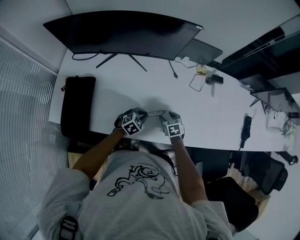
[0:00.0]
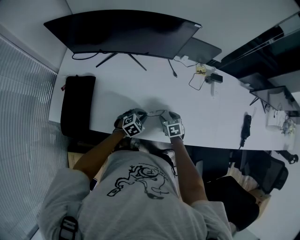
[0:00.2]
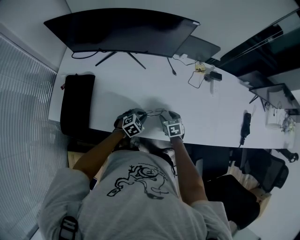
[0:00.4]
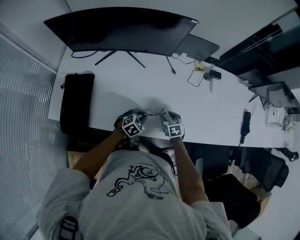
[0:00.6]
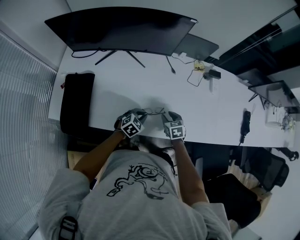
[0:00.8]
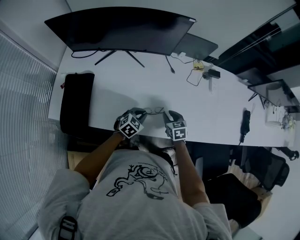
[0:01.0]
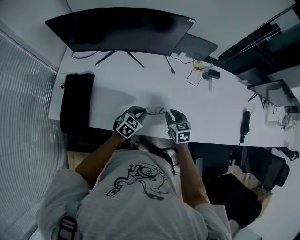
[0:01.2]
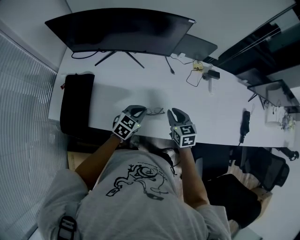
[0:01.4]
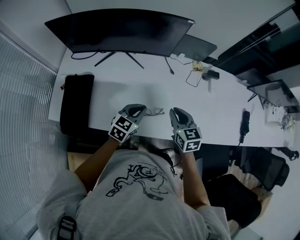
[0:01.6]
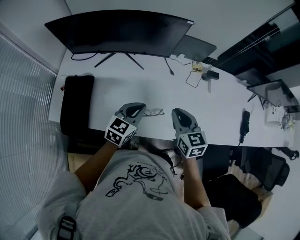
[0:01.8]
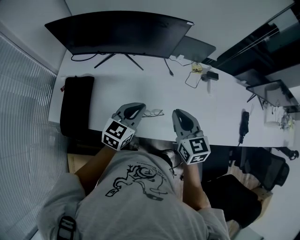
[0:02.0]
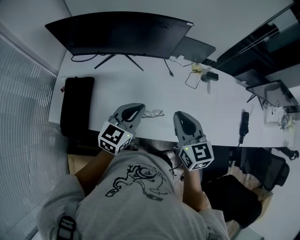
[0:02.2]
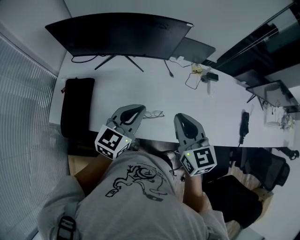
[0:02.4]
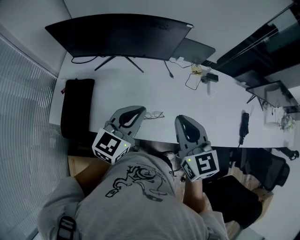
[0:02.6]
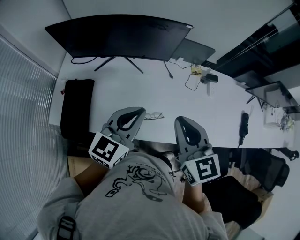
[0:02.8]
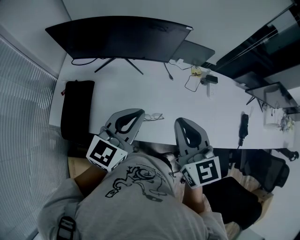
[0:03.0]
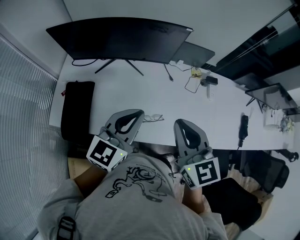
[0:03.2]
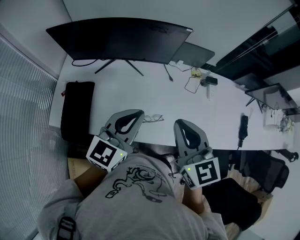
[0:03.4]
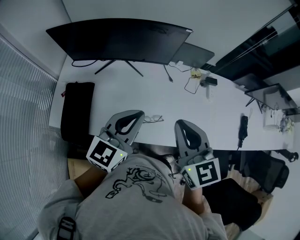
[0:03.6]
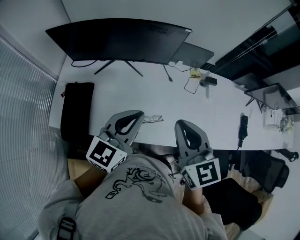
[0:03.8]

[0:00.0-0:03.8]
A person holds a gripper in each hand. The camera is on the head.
0:00.0 to 0:01.2: The right gripper heads upward, covering approximately 10 cm, and closes up. The left gripper travels upward by some 5 cm.
0:01.2 to 0:02.6: Both grippers travel together upward, roughly 30 cm. The right gripper rotates some 20 degrees; the left gripper rotates roughly 30 degrees.
0:02.6 to 0:03.8: There are only small adjustments of the grippers.

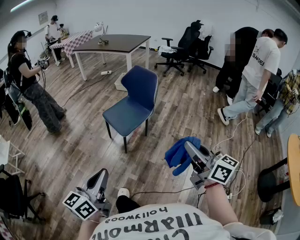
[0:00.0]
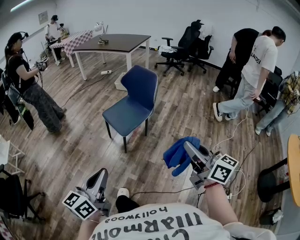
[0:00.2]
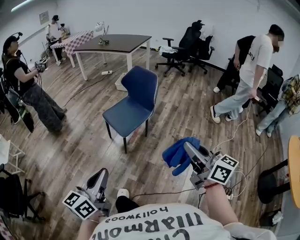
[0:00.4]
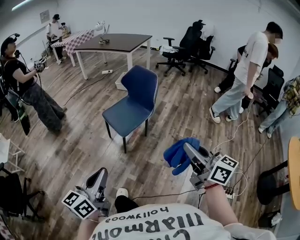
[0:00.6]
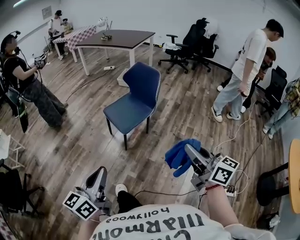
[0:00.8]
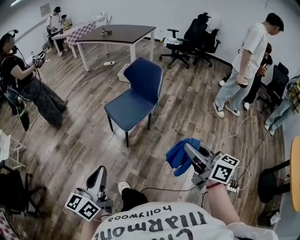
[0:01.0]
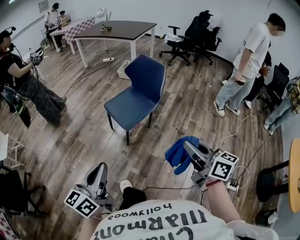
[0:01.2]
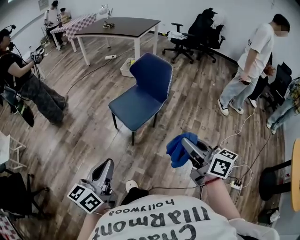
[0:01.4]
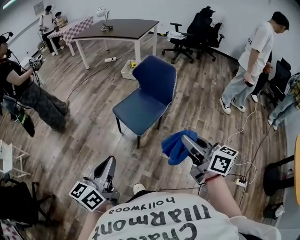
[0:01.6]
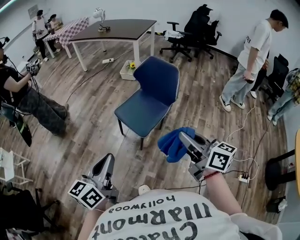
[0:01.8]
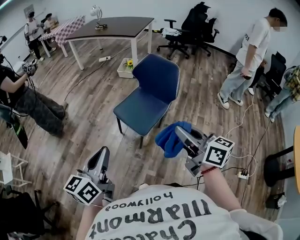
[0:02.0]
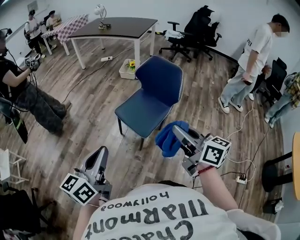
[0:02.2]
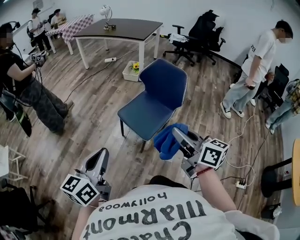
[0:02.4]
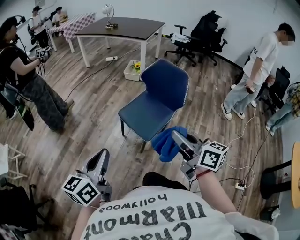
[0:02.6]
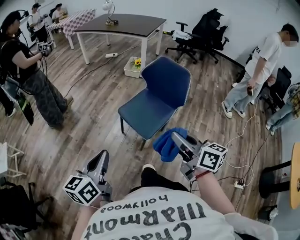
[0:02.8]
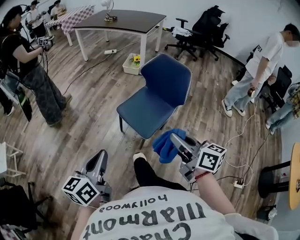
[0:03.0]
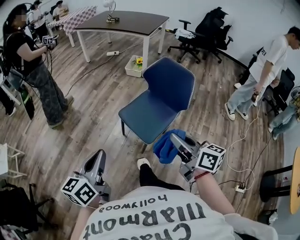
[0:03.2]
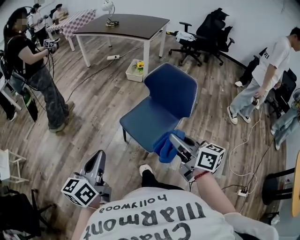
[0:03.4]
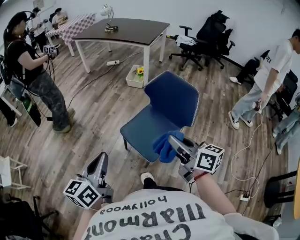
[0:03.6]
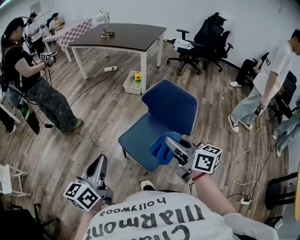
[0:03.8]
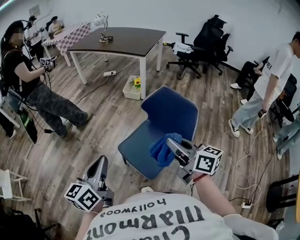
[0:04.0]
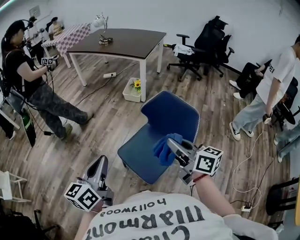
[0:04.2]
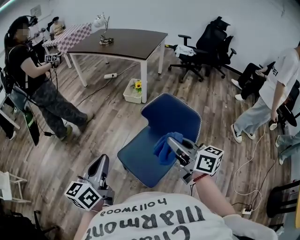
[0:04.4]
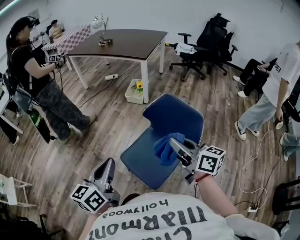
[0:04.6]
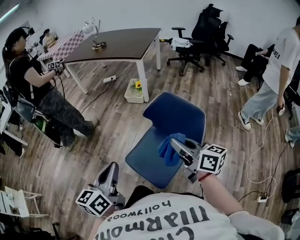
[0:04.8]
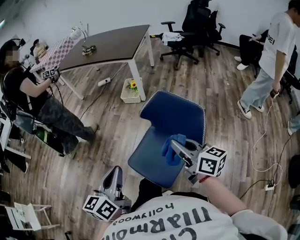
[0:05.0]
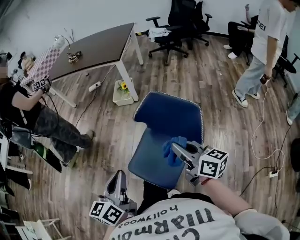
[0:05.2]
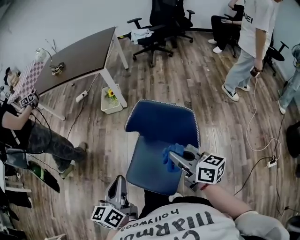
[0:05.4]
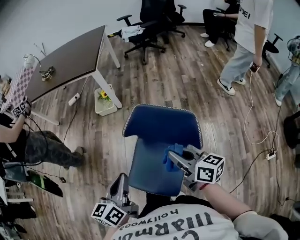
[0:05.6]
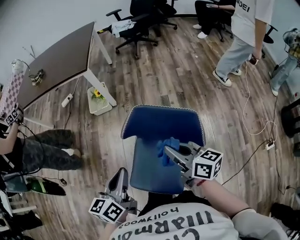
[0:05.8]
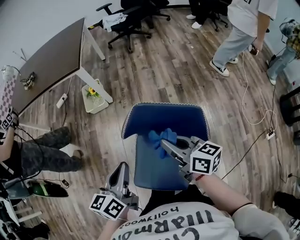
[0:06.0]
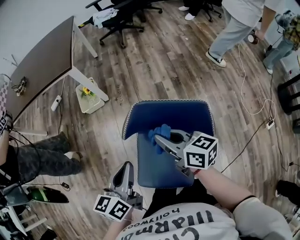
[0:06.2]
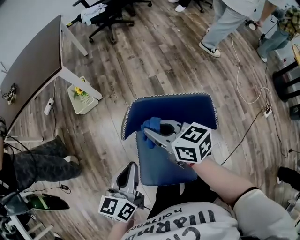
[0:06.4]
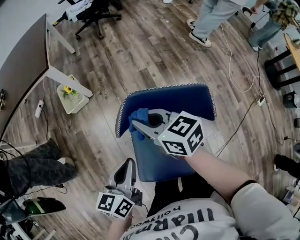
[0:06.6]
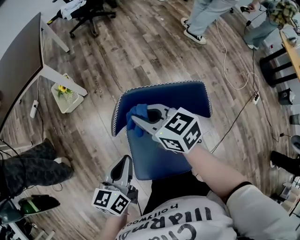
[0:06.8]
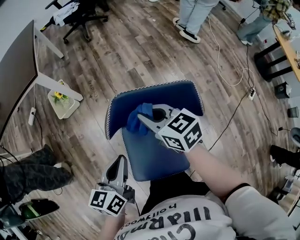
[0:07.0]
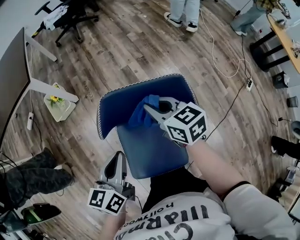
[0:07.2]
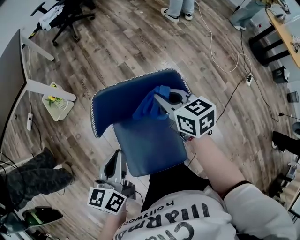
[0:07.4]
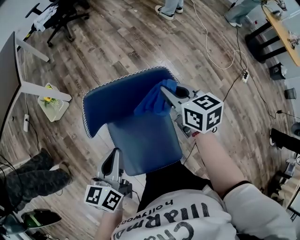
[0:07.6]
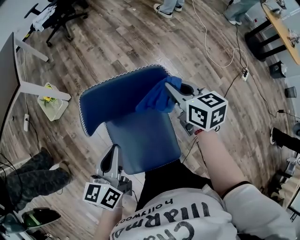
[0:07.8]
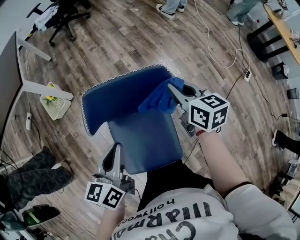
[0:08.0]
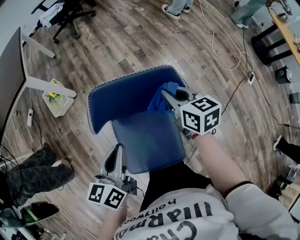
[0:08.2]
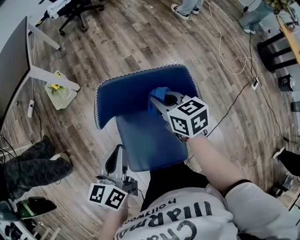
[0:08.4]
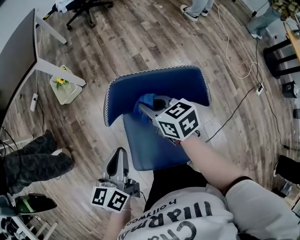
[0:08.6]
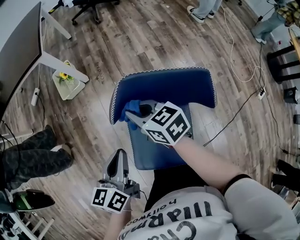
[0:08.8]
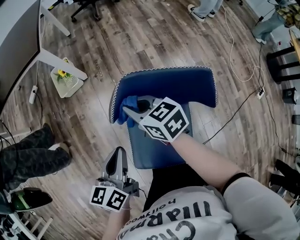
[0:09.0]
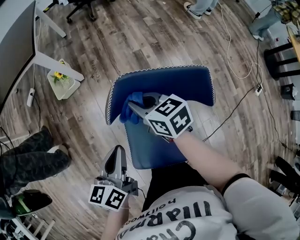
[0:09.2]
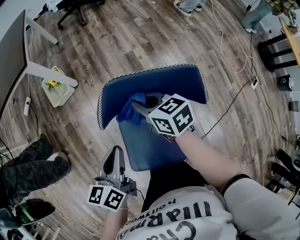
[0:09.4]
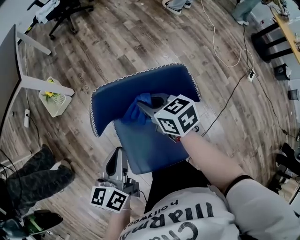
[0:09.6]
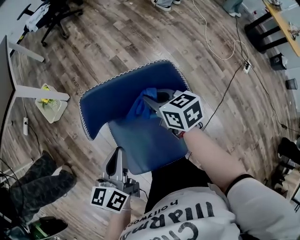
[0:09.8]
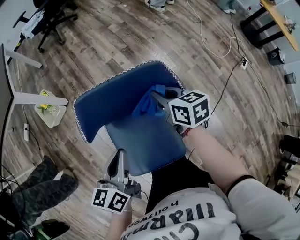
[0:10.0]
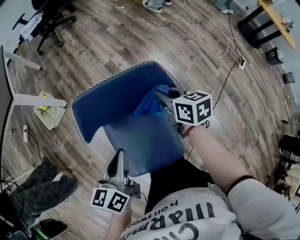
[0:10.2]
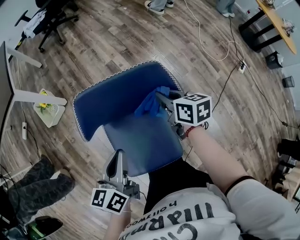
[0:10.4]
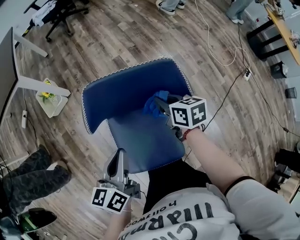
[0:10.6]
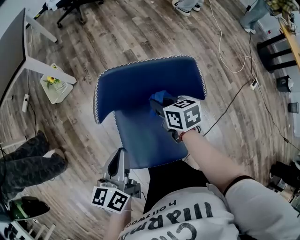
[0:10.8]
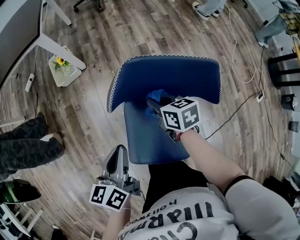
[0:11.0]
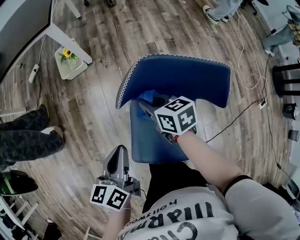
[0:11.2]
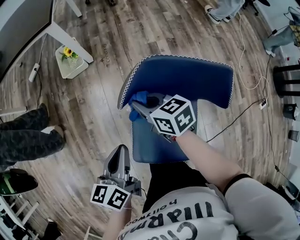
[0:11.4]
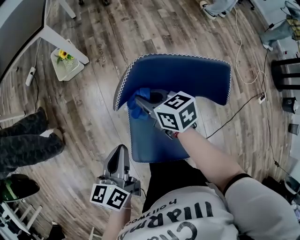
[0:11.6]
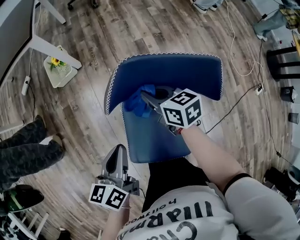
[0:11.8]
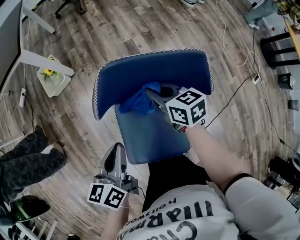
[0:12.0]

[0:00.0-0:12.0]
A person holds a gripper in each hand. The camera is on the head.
0:00.0 to 0:01.6: Both grippers travel together forward and to the left, some 20 cm.
0:01.6 to 0:03.0: The two grippers go about 15 cm forward and to the left.
0:03.0 to 0:04.4: The grippers both shift forward by some 30 cm.
0:04.4 to 0:06.0: The left gripper moves some 30 cm, and turns by approximately 40 degrees. The right gripper shifts by approximately 25 cm, and swivels about 30 degrees.
0:06.0 to 0:07.6: The left gripper heads downward, covering some 10 cm, and rotates approximately 20 degrees. Meanwhile the right gripper ends up about 15 cm from where it was, and turns by some 40 degrees.
0:07.6 to 0:09.0: The left gripper ends up roughly 10 cm from where it was; the right gripper moves some 25 cm, and turns by roughly 30 degrees.
0:09.0 to 0:10.4: The right gripper changes place by approximately 30 cm, and rotates roughly 40 degrees, while the left gripper changes place by approximately 10 cm.
0:10.4 to 0:12.0: The right gripper rotates some 20 degrees.

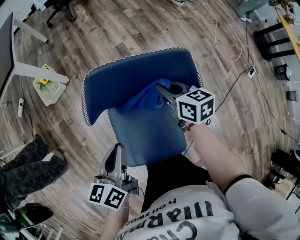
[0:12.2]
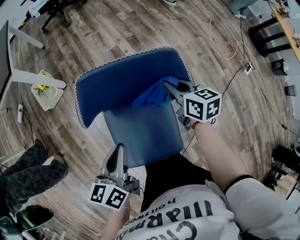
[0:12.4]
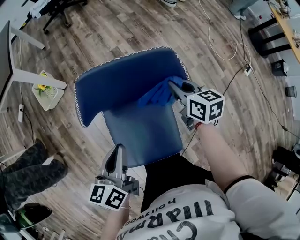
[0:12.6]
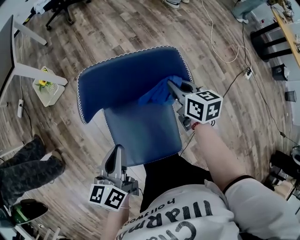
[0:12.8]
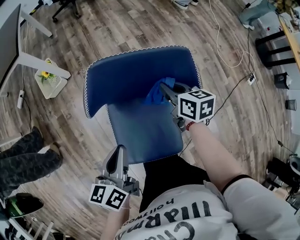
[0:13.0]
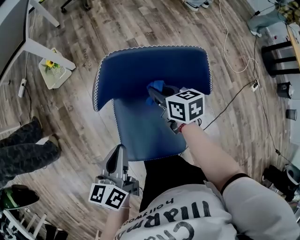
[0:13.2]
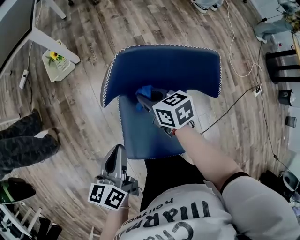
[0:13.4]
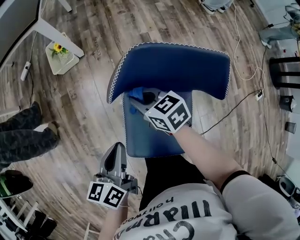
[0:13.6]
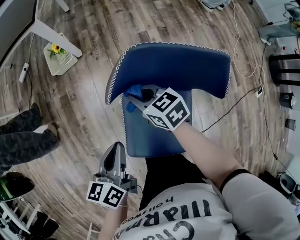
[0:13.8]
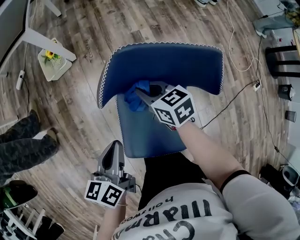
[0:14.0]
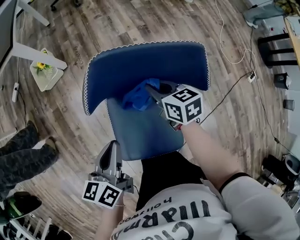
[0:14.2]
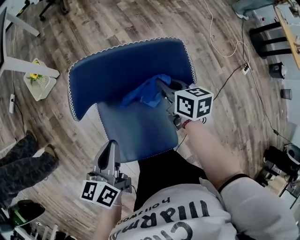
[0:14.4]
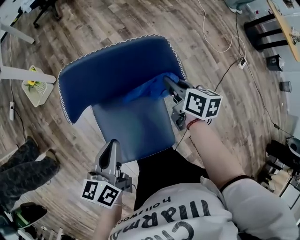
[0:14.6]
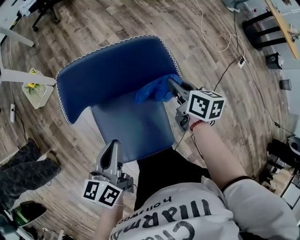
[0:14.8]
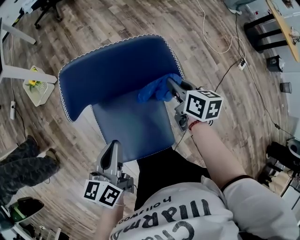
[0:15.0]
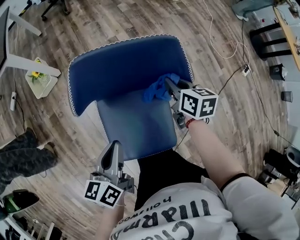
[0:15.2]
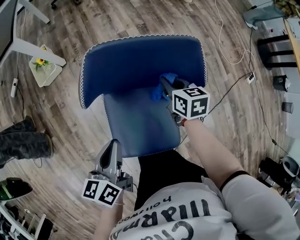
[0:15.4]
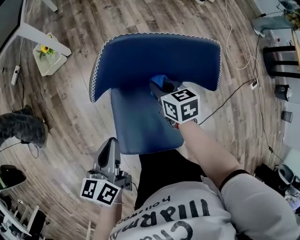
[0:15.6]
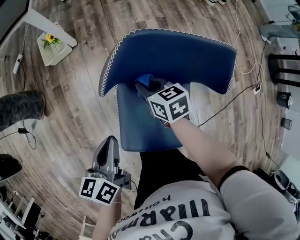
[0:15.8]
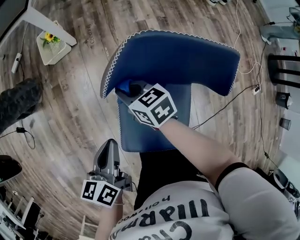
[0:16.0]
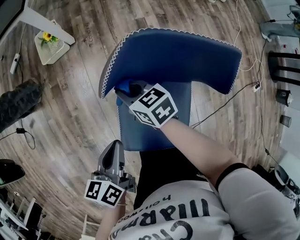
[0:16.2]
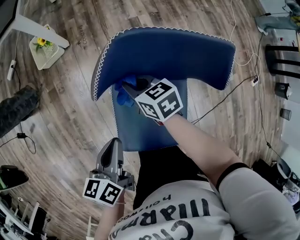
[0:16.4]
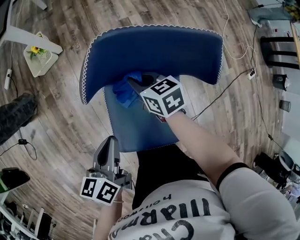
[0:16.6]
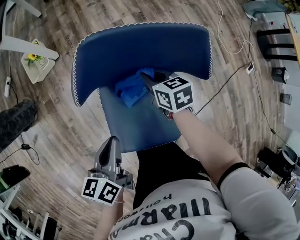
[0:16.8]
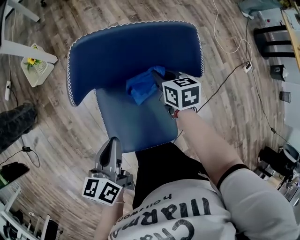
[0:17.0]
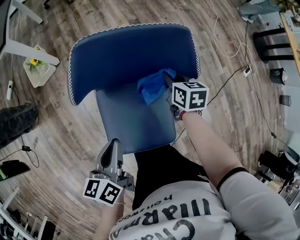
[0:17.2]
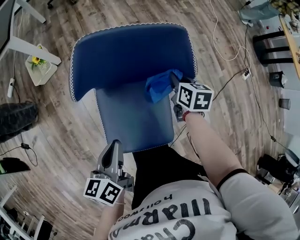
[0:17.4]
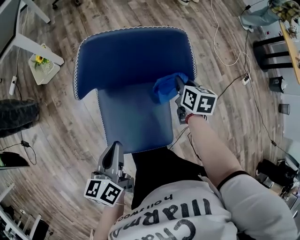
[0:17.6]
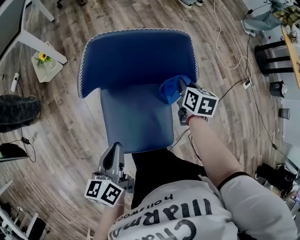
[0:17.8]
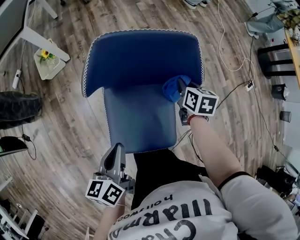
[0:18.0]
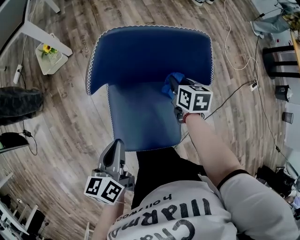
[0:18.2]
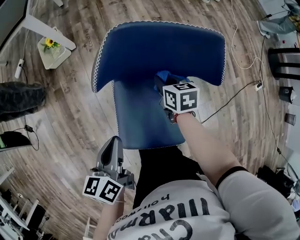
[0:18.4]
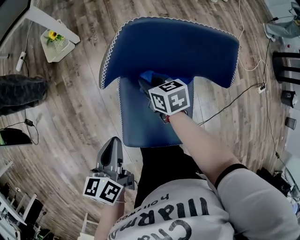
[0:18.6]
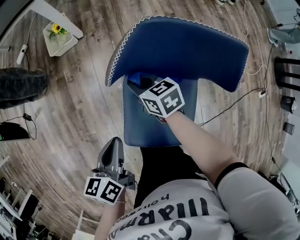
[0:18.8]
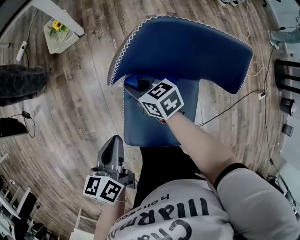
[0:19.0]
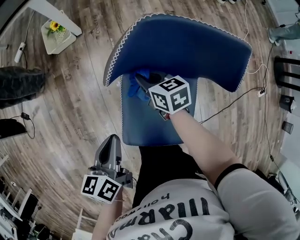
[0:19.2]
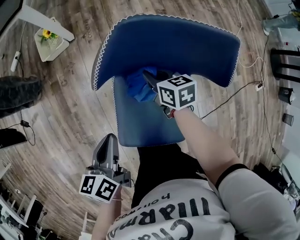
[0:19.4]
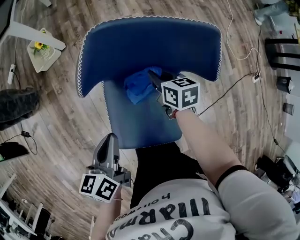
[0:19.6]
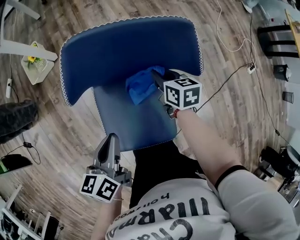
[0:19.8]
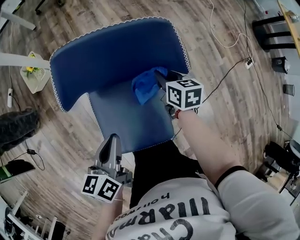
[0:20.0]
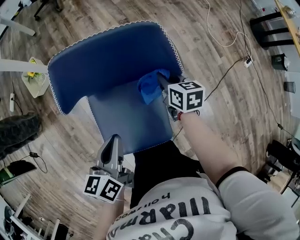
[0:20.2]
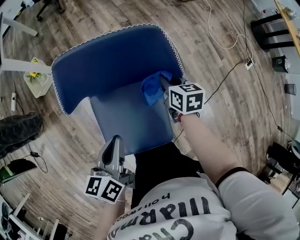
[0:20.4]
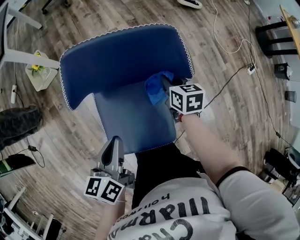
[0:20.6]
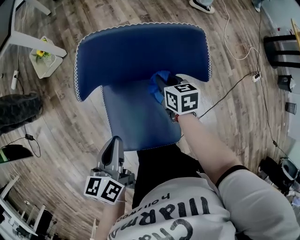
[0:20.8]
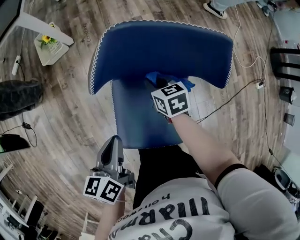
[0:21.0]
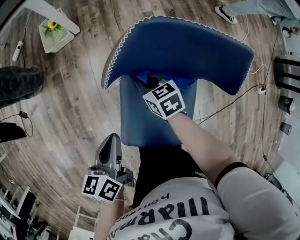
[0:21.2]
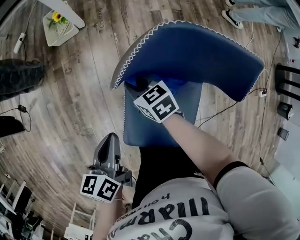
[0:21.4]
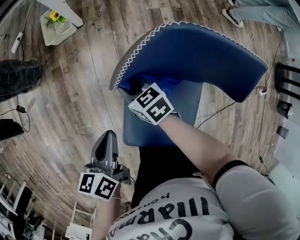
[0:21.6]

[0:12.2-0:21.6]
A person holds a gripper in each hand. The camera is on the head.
0:12.2 to 0:13.8: The left gripper shifts by roughly 10 cm. Meanwhile the right gripper shifts by roughly 20 cm, and turns by approximately 30 degrees.
0:13.8 to 0:15.4: The right gripper moves approximately 25 cm, and turns by roughly 40 degrees.
0:17.0 to 0:18.4: The right gripper heads to the left, covering about 5 cm. The left gripper changes place by some 5 cm.
0:18.4 to 0:20.0: The left gripper ends up some 10 cm from where it was. The right gripper moves about 15 cm.
0:20.0 to 0:21.6: The left gripper ends up roughly 15 cm from where it was, and swivels about 20 degrees; the right gripper changes place by some 35 cm, and rotates about 50 degrees.
